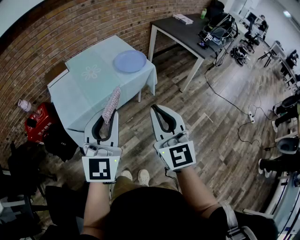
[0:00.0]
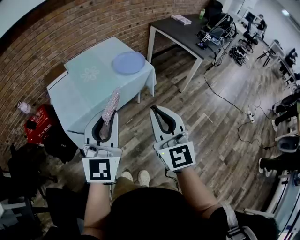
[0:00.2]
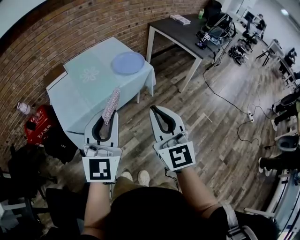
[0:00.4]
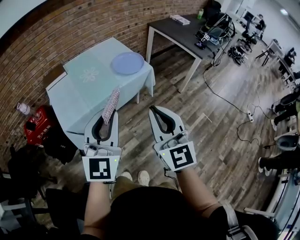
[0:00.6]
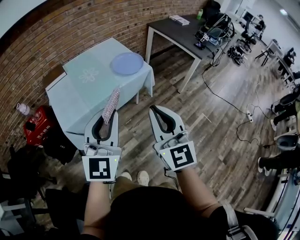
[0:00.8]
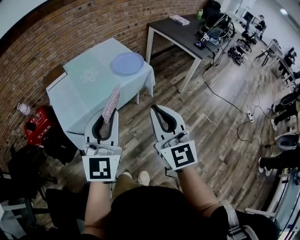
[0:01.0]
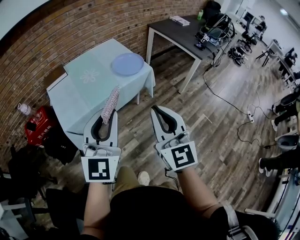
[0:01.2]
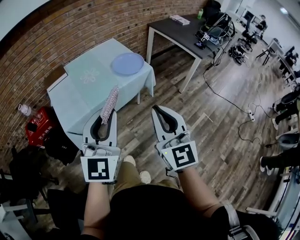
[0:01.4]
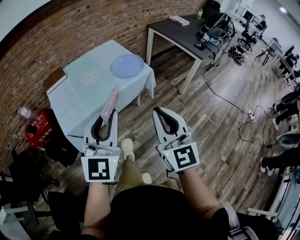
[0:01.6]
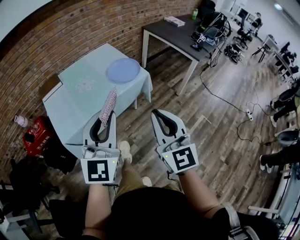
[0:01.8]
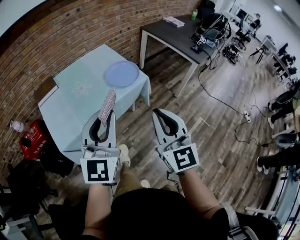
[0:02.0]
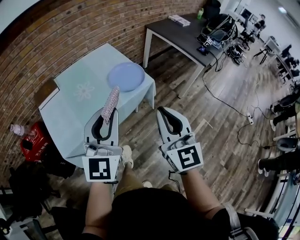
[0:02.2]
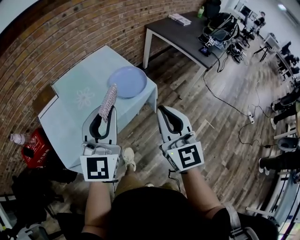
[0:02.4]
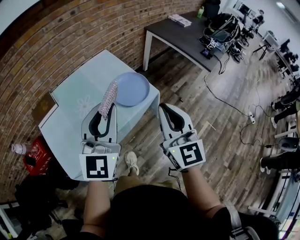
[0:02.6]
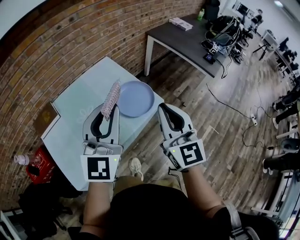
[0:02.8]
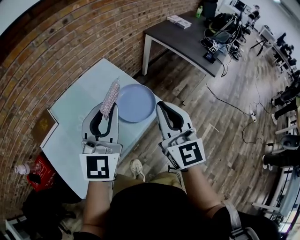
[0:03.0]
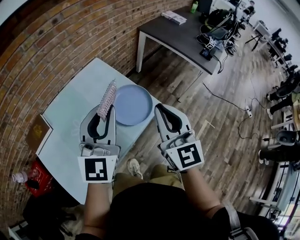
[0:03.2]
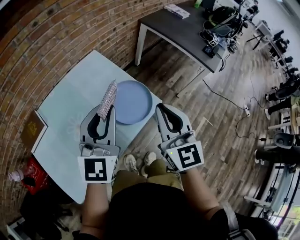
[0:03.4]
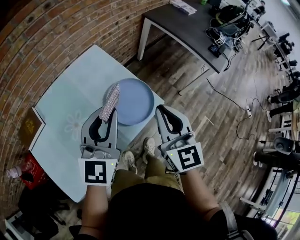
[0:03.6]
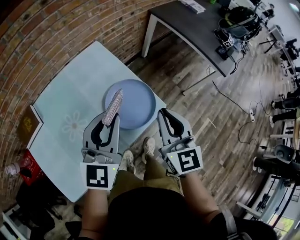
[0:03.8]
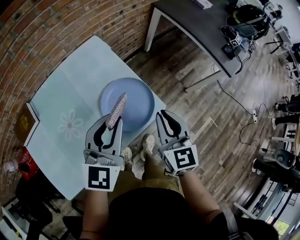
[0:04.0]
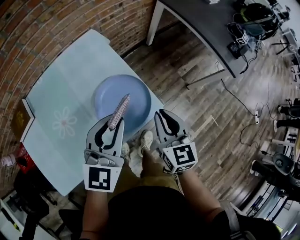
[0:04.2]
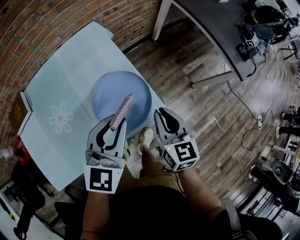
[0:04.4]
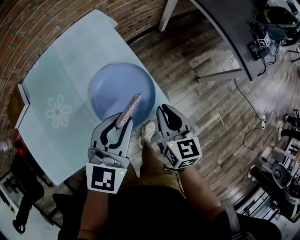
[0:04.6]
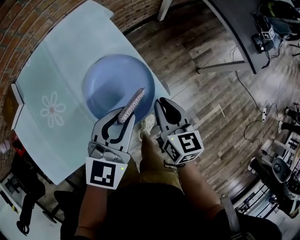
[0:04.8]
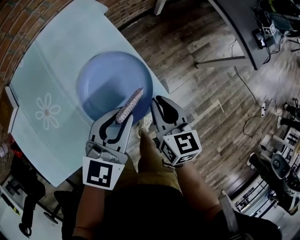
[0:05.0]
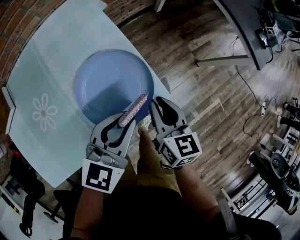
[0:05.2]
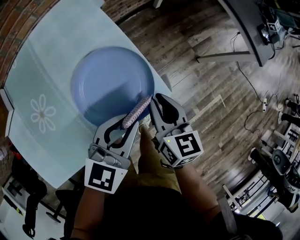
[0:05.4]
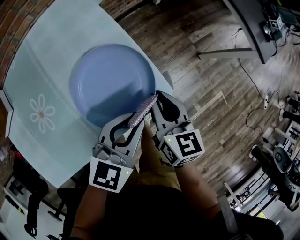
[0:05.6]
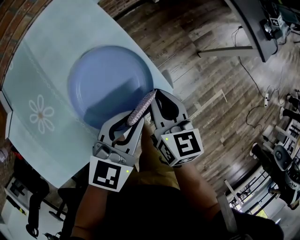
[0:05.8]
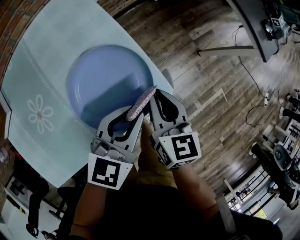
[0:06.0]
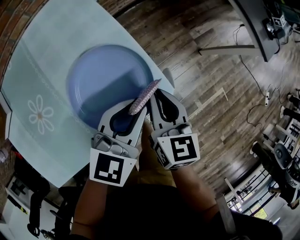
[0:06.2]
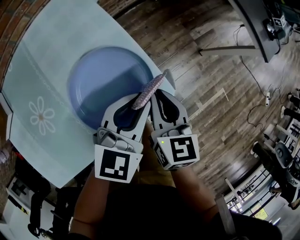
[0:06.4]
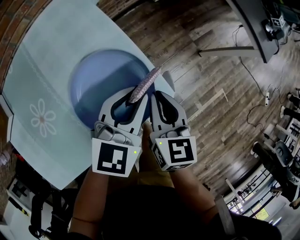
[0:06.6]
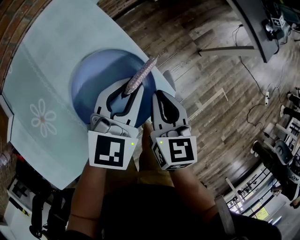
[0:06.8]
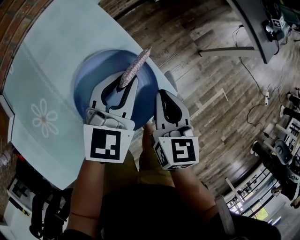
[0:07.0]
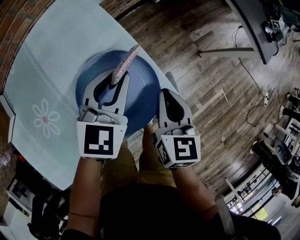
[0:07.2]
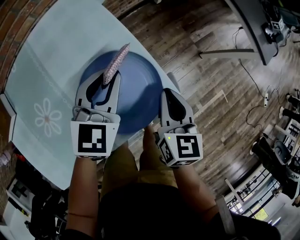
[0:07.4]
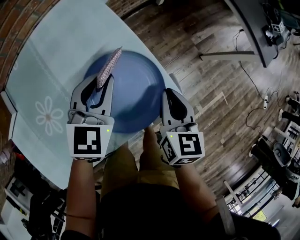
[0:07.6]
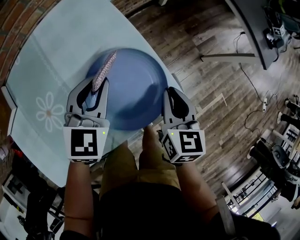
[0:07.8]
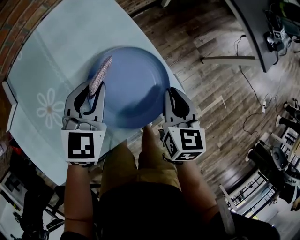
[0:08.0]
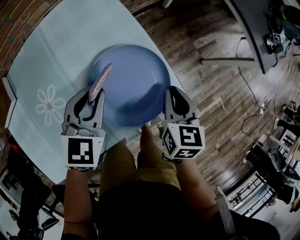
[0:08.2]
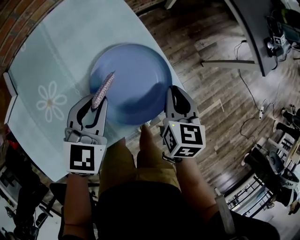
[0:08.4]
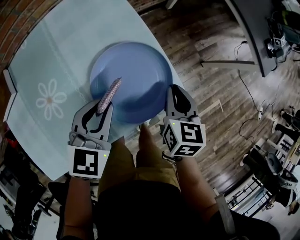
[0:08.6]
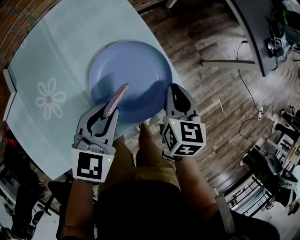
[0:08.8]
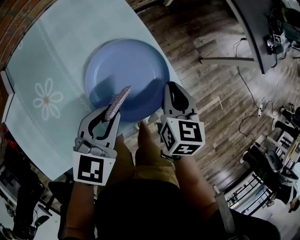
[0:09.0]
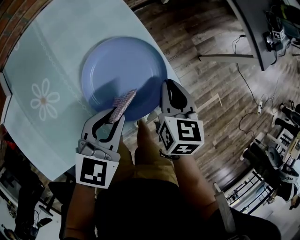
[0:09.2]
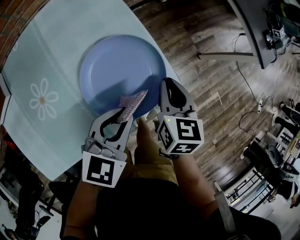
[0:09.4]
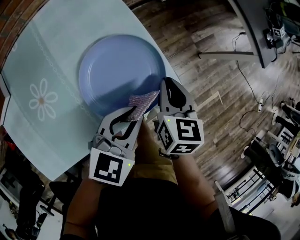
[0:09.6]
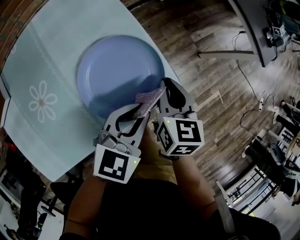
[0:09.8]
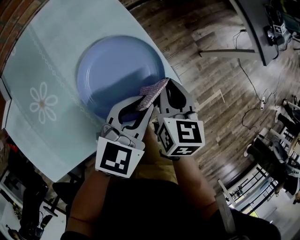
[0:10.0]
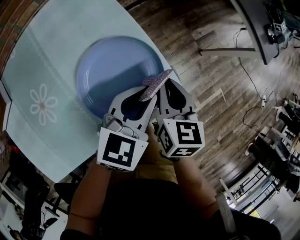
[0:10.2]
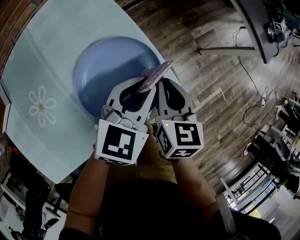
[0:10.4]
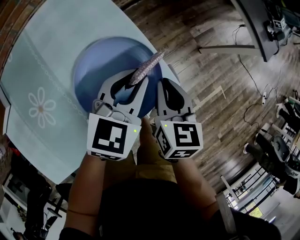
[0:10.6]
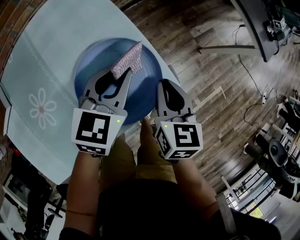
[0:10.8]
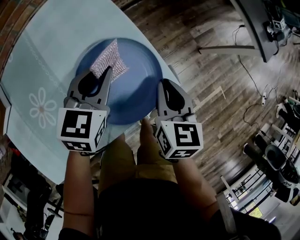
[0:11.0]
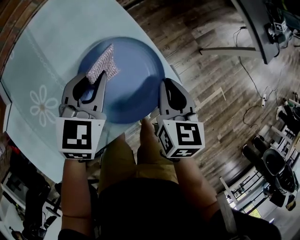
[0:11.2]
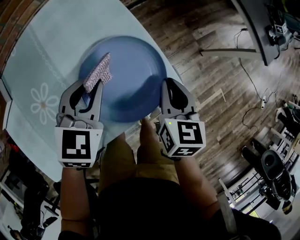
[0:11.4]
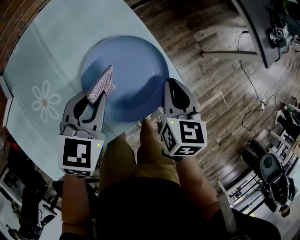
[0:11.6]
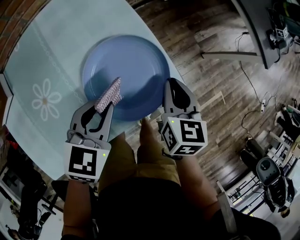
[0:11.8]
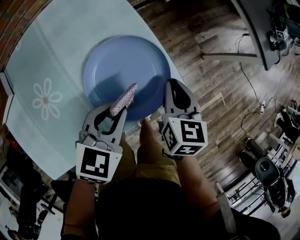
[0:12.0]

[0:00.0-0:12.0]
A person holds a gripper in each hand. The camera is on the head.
0:00.0 to 0:01.6: The grippers stay close to where they were, moving slightly.
0:01.6 to 0:03.0: The pair of grippers is taken forward, approximately 40 cm.
0:03.0 to 0:04.4: The left gripper shifts roughly 30 cm downward, forward and to the right, and turns by roughly 30 degrees. Meanwhile the right gripper is displaced downward and forward by about 35 cm, and turns by some 30 degrees.
0:04.4 to 0:06.0: The grippers both shift downward by approximately 15 cm. The left gripper swivels some 20 degrees.
0:06.0 to 0:07.6: The left gripper heads to the left and forward, covering about 15 cm.
0:07.6 to 0:09.0: The left gripper goes some 15 cm backward.
0:09.0 to 0:10.4: The left gripper is displaced forward and to the right by about 15 cm.
0:10.4 to 0:12.0: The left gripper travels backward and to the left by about 10 cm.

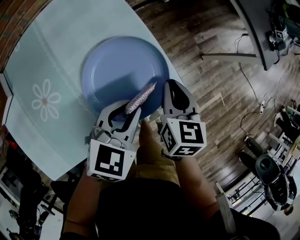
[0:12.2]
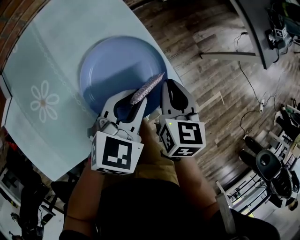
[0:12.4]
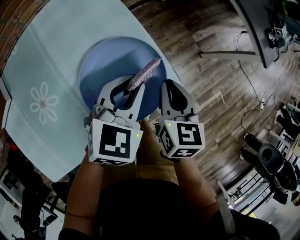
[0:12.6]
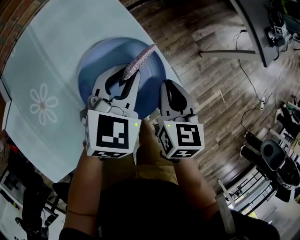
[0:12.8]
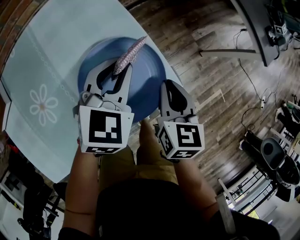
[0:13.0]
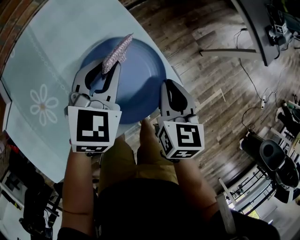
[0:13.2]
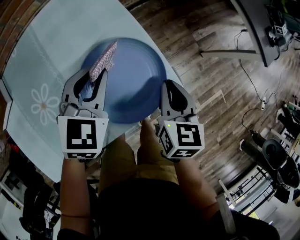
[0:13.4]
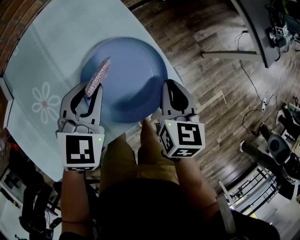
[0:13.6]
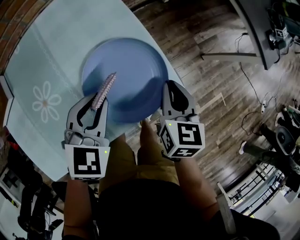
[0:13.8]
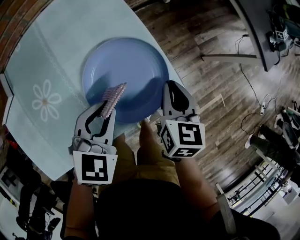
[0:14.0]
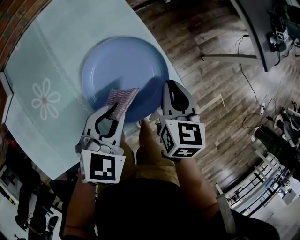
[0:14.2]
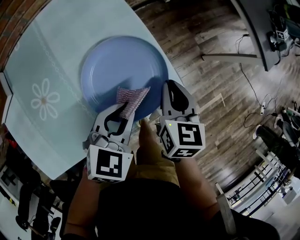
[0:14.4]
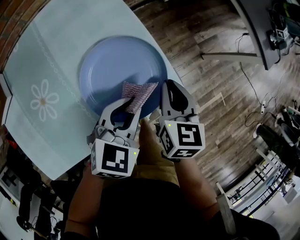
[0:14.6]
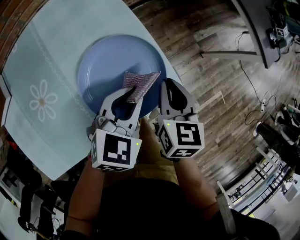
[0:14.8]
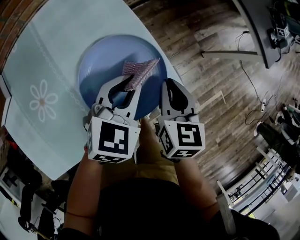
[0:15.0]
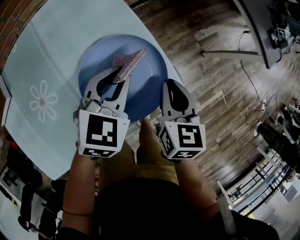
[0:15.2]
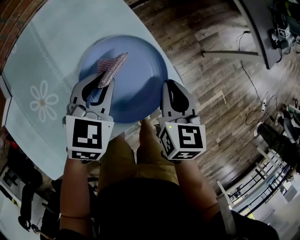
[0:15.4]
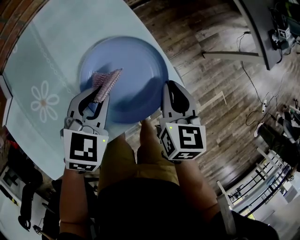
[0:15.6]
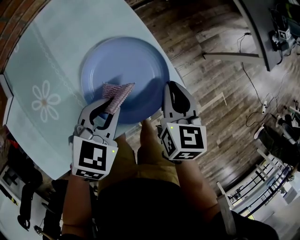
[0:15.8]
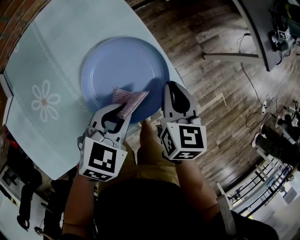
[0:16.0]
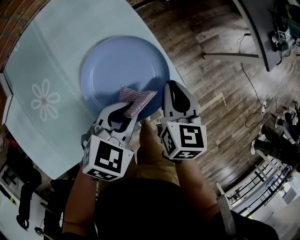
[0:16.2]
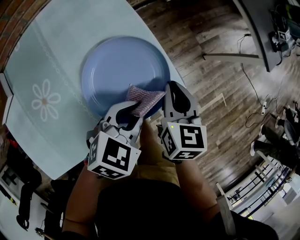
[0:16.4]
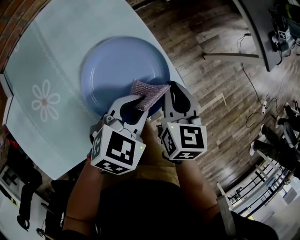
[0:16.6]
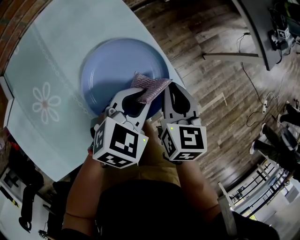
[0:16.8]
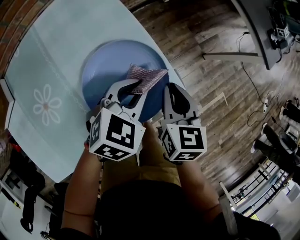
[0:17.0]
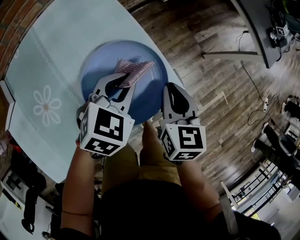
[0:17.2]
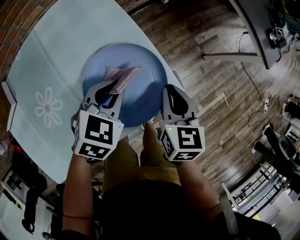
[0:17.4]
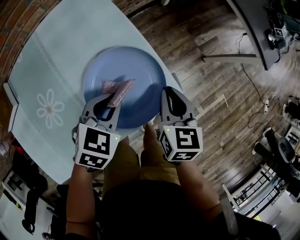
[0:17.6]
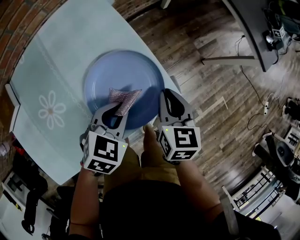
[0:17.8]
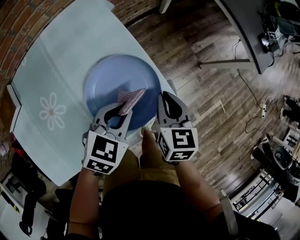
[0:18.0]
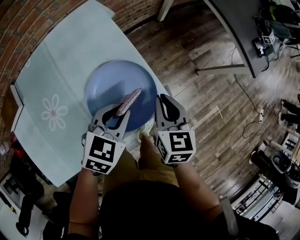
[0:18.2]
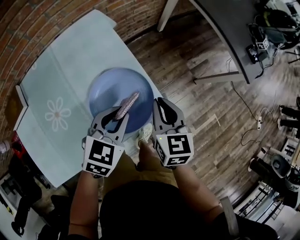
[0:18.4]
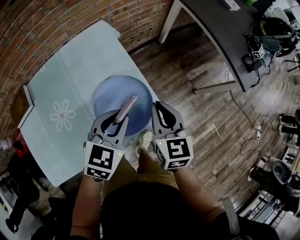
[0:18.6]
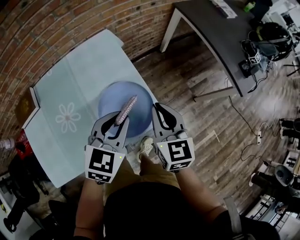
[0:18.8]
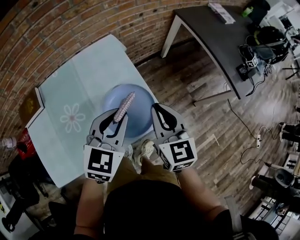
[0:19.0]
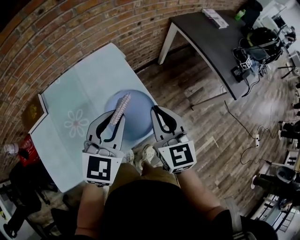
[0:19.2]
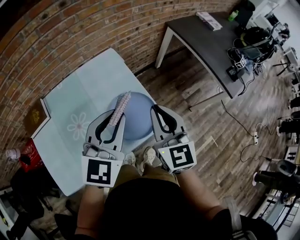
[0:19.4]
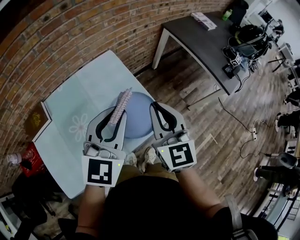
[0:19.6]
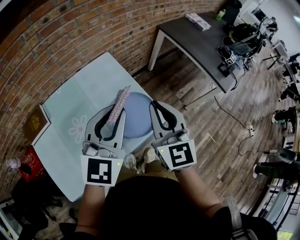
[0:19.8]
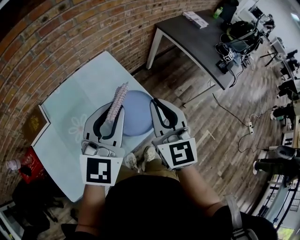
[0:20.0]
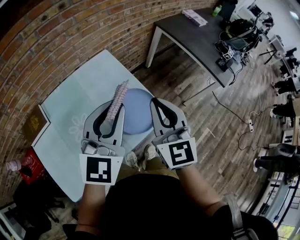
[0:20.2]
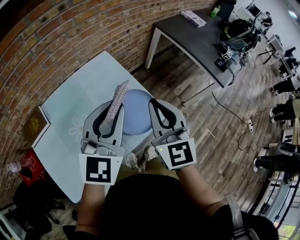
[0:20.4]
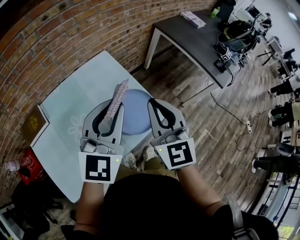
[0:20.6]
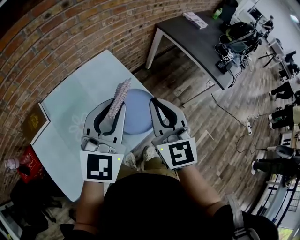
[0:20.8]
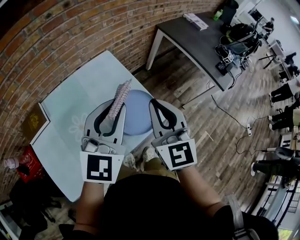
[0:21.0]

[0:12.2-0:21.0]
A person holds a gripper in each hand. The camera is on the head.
0:12.2 to 0:13.6: The left gripper moves to the left, about 10 cm.
0:13.6 to 0:15.2: The left gripper travels to the right by about 5 cm.
0:15.2 to 0:16.6: The left gripper is displaced to the right and backward by some 10 cm.
0:18.0 to 0:19.6: The grippers both shift upward by about 35 cm. The right gripper angles its fingers upward, by some 30 degrees, while the left gripper points its fingers about 40 degrees further upward.
0:19.6 to 0:21.0: The right gripper ends up approximately 5 cm from where it was.

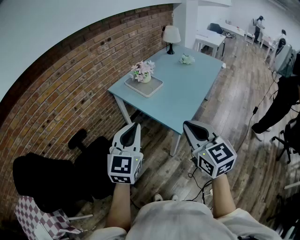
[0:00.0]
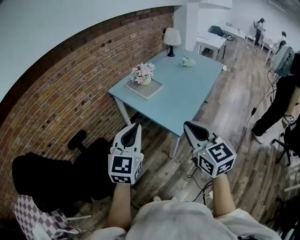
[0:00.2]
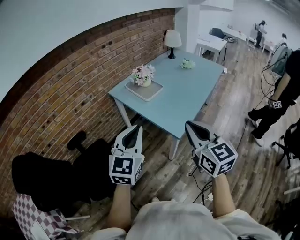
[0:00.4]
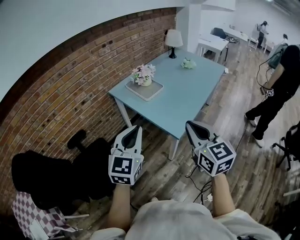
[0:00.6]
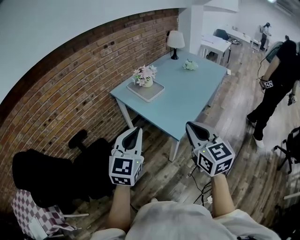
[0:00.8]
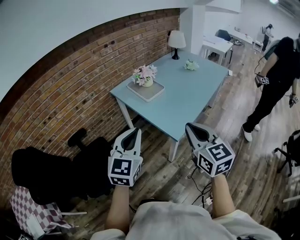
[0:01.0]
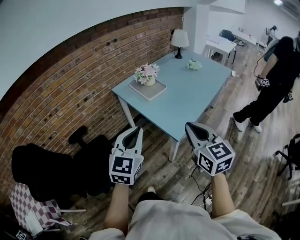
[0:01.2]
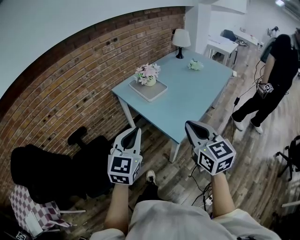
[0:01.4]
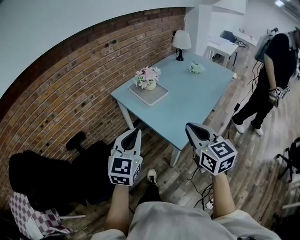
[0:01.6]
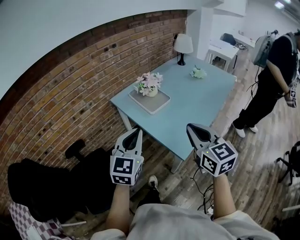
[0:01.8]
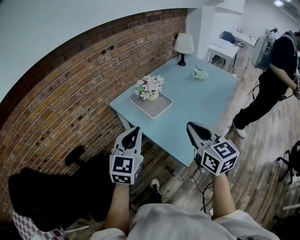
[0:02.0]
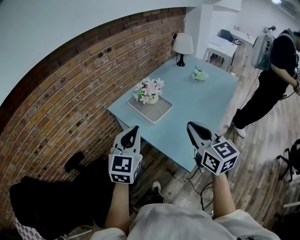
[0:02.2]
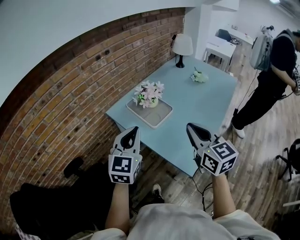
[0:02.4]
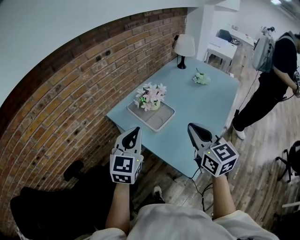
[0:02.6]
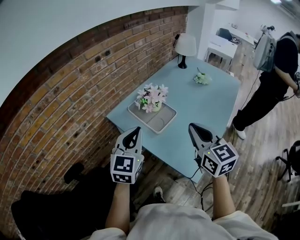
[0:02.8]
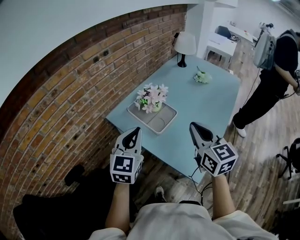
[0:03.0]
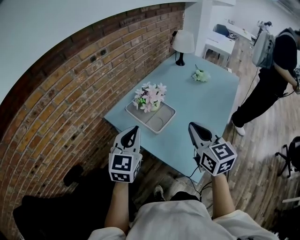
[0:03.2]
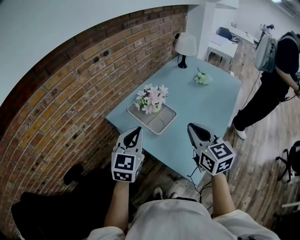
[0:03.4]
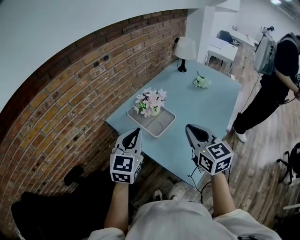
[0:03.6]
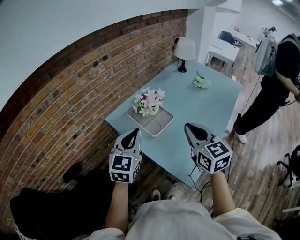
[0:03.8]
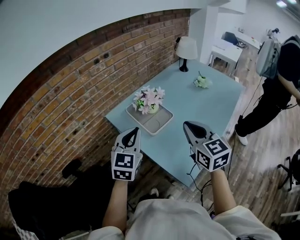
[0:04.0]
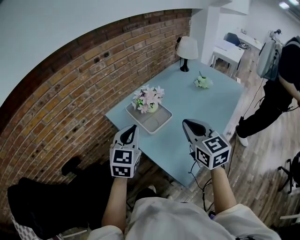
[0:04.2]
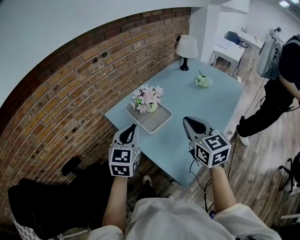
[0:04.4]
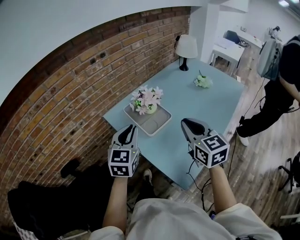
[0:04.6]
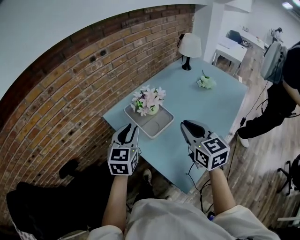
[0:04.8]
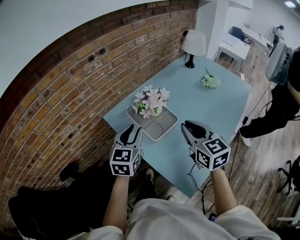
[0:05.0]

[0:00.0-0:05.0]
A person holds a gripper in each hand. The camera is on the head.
0:00.0 to 0:01.6: Both grippers move forward, about 10 cm.
0:01.6 to 0:03.4: The grippers both shift forward by roughly 30 cm.
0:03.4 to 0:05.0: The right gripper moves forward, approximately 10 cm, while the left gripper travels forward and downward by about 10 cm, and opens its fingers.
